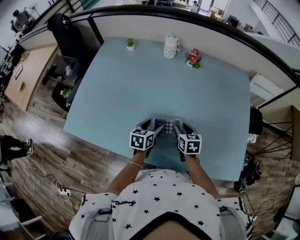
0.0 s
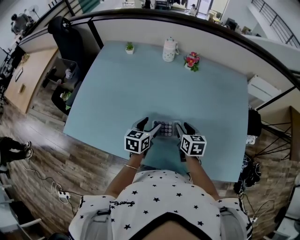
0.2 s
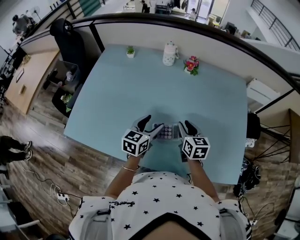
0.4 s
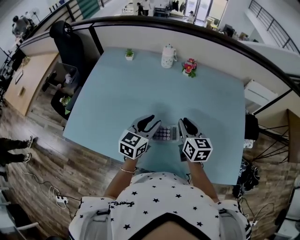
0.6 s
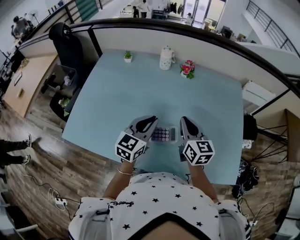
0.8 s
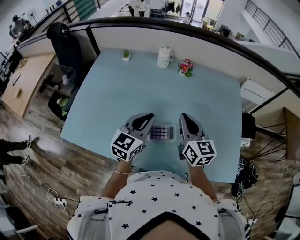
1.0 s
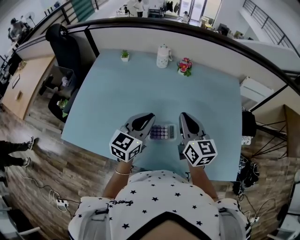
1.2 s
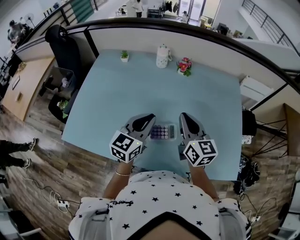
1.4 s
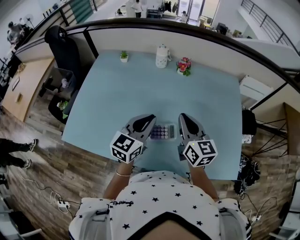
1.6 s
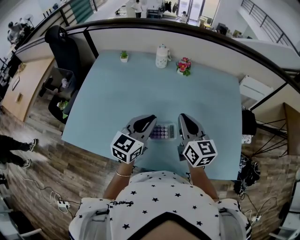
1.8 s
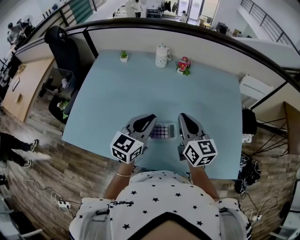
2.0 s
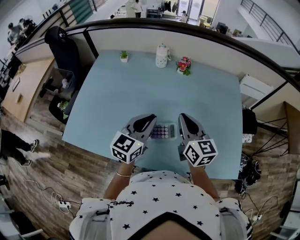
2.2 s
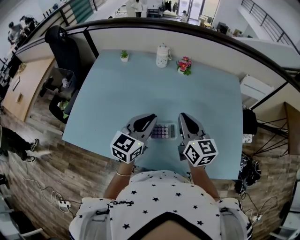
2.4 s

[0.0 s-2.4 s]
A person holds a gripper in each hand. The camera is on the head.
0.0 to 1.2 s: Both grippers travel together upward, approximately 20 cm. The right gripper tips its fingers upward by approximately 40 degrees, and closes its fingers; the left gripper turns by approximately 40 degrees, and closes up.
1.2 to 2.4 s: The two grippers keep their place.

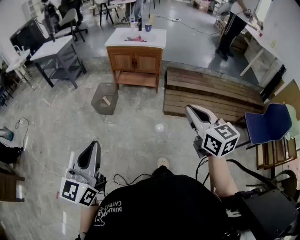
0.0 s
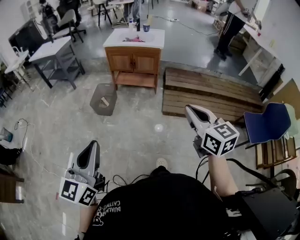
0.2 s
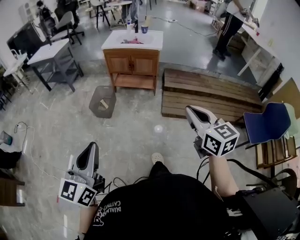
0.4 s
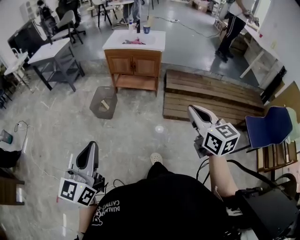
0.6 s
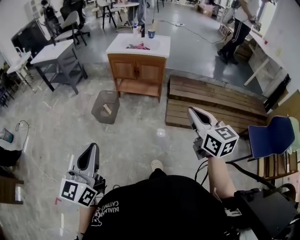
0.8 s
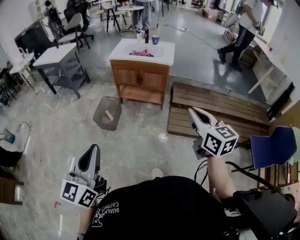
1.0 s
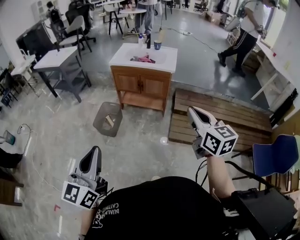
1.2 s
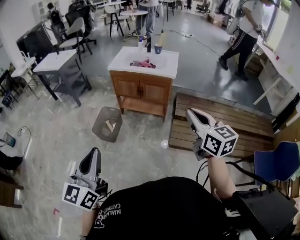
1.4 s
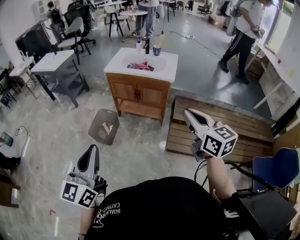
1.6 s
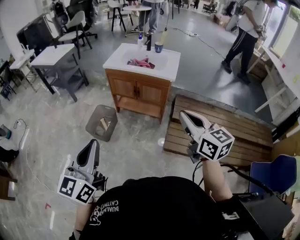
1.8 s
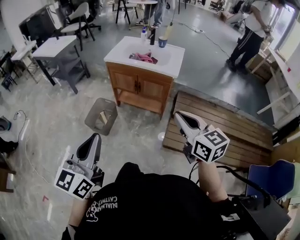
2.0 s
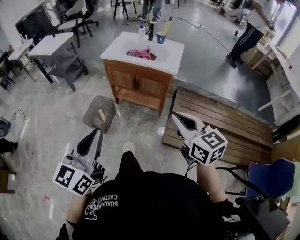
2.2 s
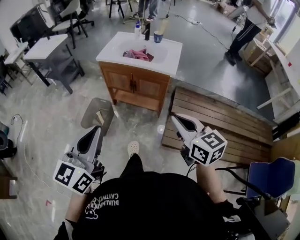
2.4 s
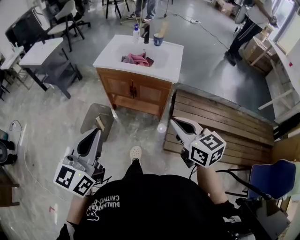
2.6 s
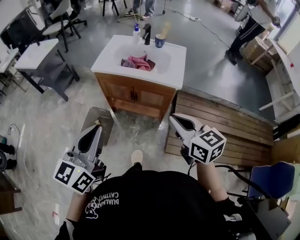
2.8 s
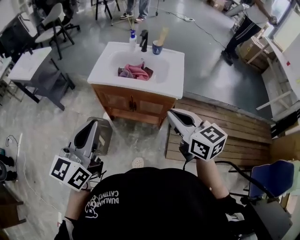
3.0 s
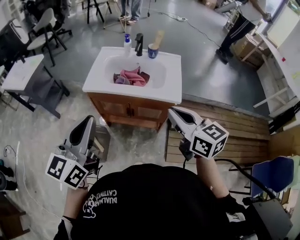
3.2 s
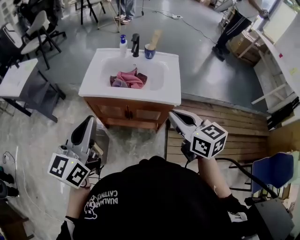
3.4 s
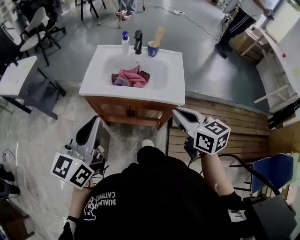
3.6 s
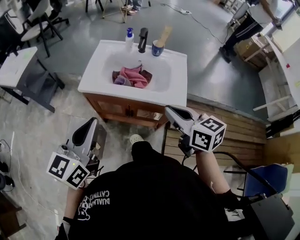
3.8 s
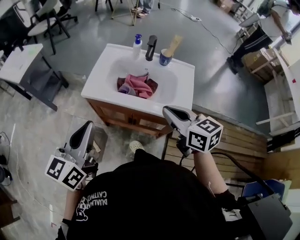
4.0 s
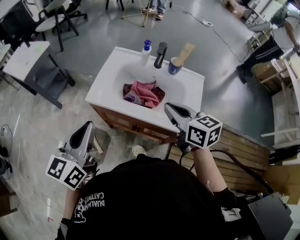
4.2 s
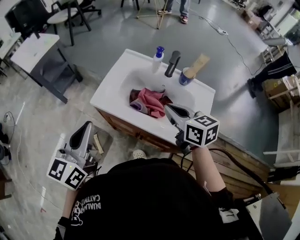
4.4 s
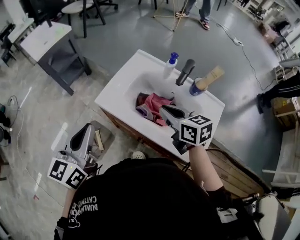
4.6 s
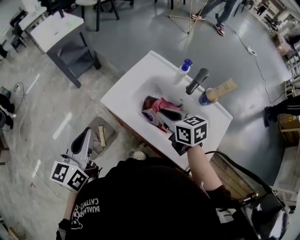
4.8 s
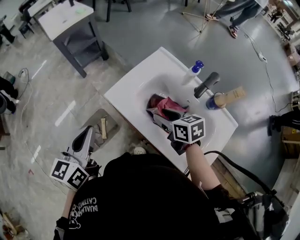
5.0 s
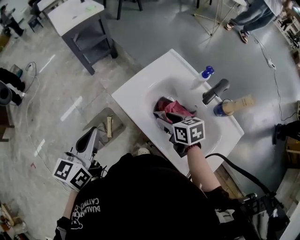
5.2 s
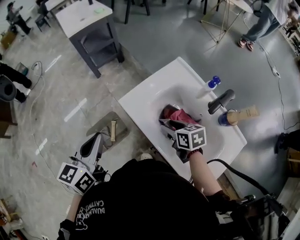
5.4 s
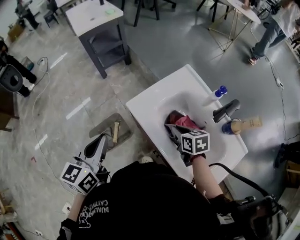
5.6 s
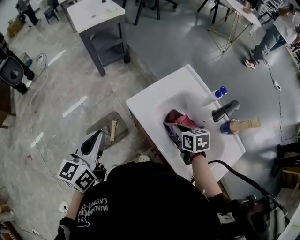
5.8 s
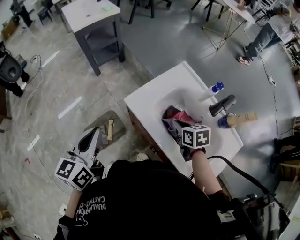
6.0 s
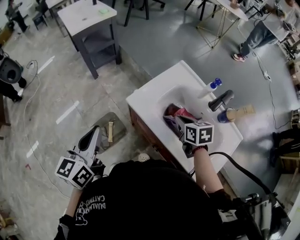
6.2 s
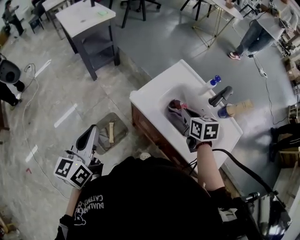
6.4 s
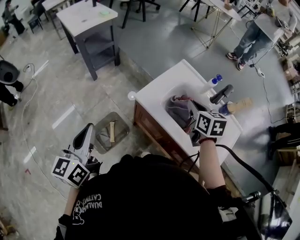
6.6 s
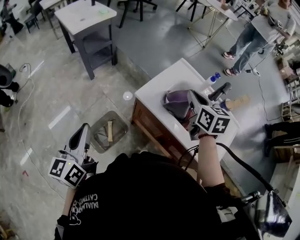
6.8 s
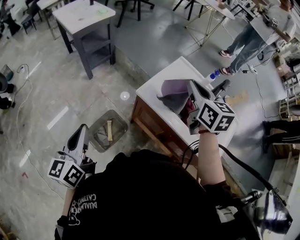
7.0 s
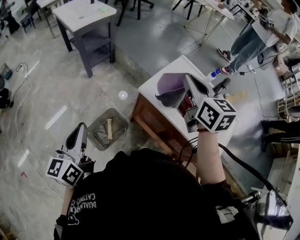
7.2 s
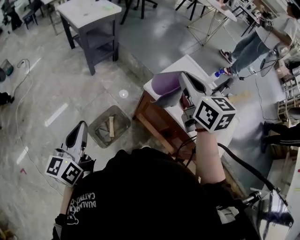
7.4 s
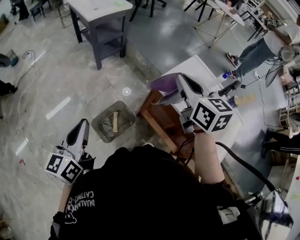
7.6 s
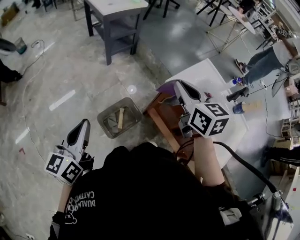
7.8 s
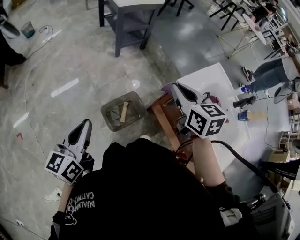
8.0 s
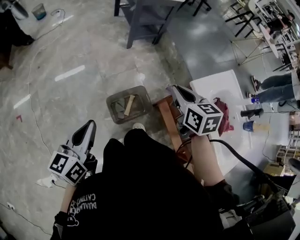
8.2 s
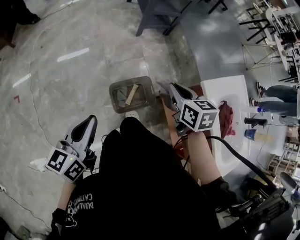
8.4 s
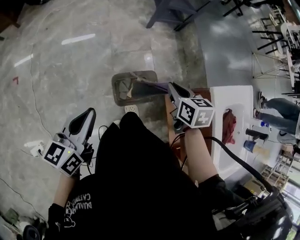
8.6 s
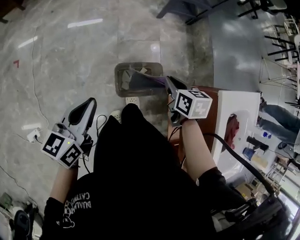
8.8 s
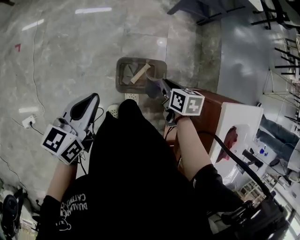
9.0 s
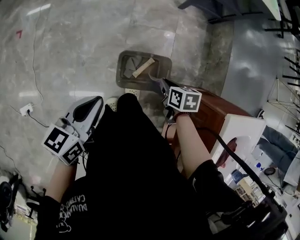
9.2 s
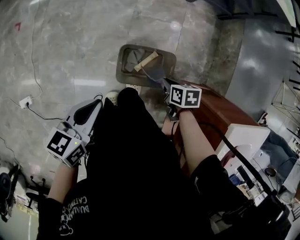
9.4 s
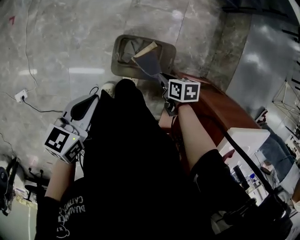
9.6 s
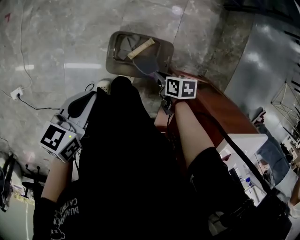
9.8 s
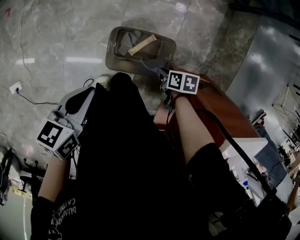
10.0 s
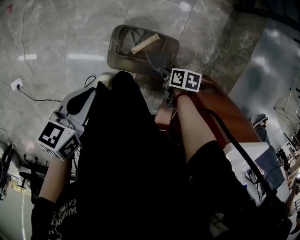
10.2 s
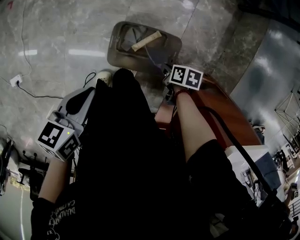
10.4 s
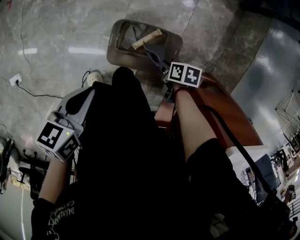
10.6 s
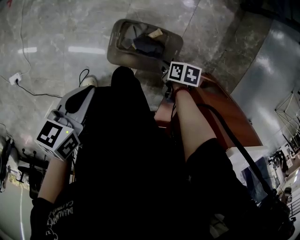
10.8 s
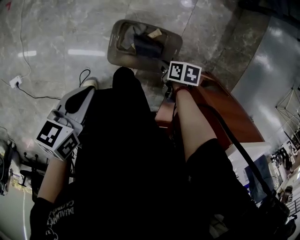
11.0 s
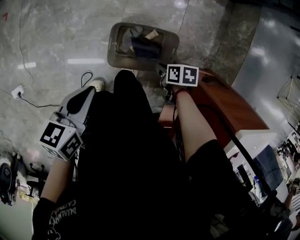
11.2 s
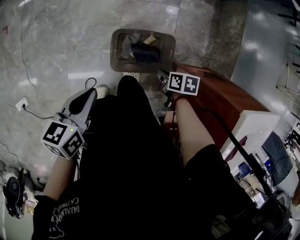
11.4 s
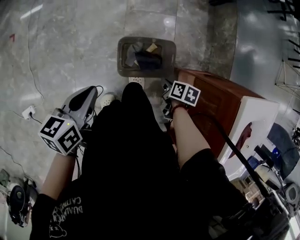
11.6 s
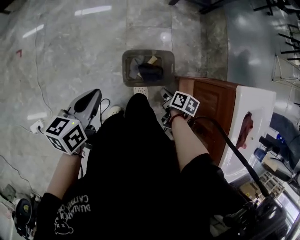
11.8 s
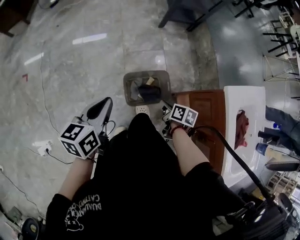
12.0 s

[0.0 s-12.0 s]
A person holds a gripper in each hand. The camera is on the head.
0.0 to 1.6 s: Both grippers travel together forward, about 35 cm.
1.6 to 3.0 s: Both grippers travel together forward, about 35 cm.
3.0 to 4.4 s: The grippers both shift forward by approximately 30 cm.
4.4 to 6.0 s: The right gripper is displaced downward by some 15 cm, changes its angle by approximately 30 degrees, and opens and closes again; the left gripper ends up approximately 10 cm from where it was, and rotates some 30 degrees.
6.0 to 7.6 s: The left gripper moves to the left, about 25 cm. The right gripper heads upward and to the left, covering approximately 35 cm, and tips its fingers upward by approximately 30 degrees.
7.6 to 9.0 s: The left gripper travels downward by approximately 20 cm, and swivels roughly 30 degrees. Meanwhile the right gripper is displaced downward by approximately 40 cm, and points its fingers roughly 40 degrees further downward.
9.0 to 10.4 s: Both grippers travel together downward, approximately 25 cm. The right gripper turns by approximately 30 degrees. Meanwhile the left gripper turns by approximately 30 degrees.
10.4 to 12.0 s: Both grippers move upward, approximately 20 cm. The left gripper swivels about 20 degrees. Meanwhile the right gripper changes its angle by about 40 degrees.

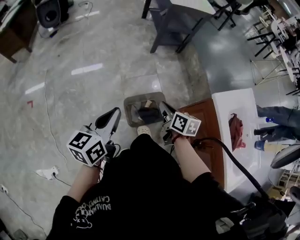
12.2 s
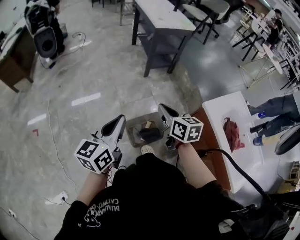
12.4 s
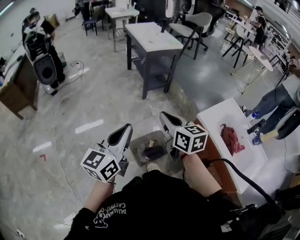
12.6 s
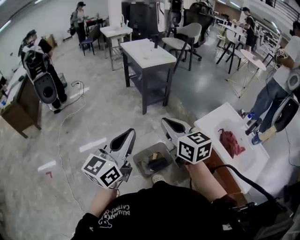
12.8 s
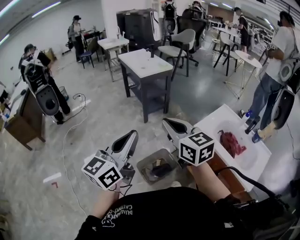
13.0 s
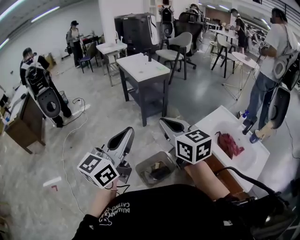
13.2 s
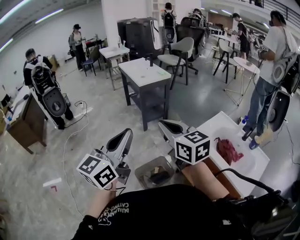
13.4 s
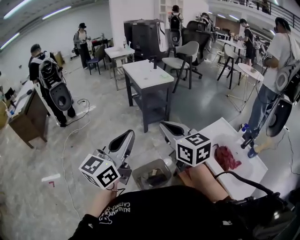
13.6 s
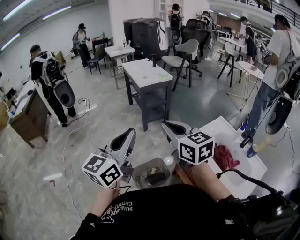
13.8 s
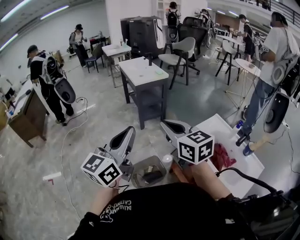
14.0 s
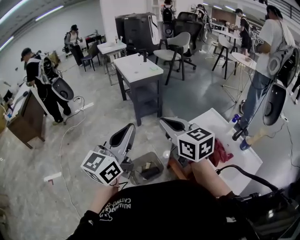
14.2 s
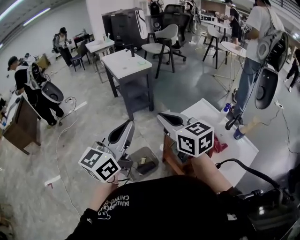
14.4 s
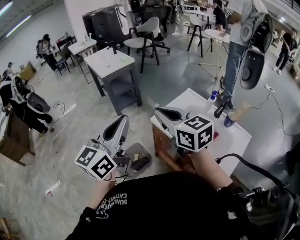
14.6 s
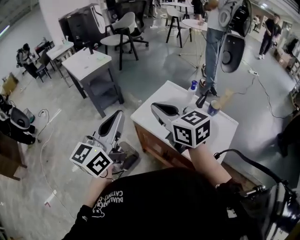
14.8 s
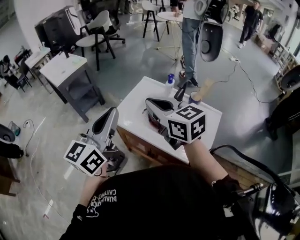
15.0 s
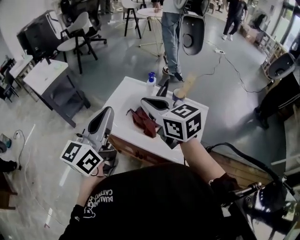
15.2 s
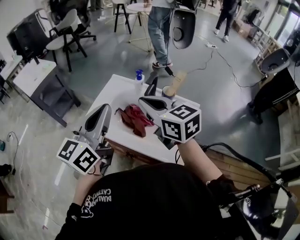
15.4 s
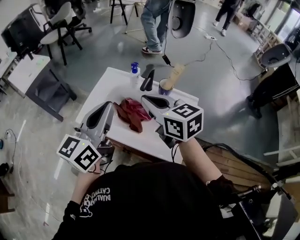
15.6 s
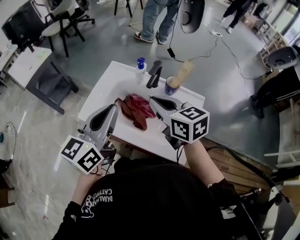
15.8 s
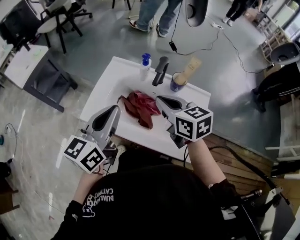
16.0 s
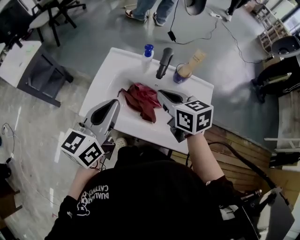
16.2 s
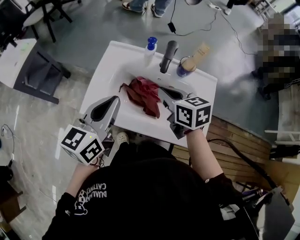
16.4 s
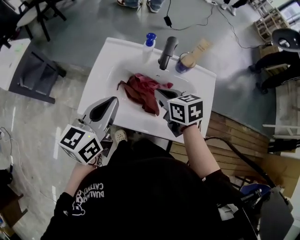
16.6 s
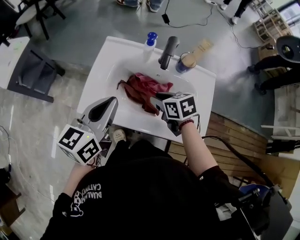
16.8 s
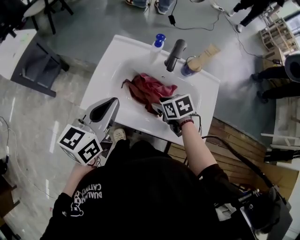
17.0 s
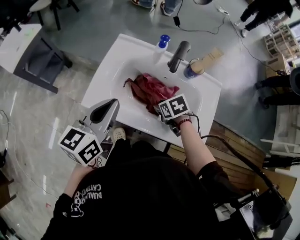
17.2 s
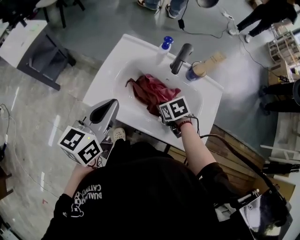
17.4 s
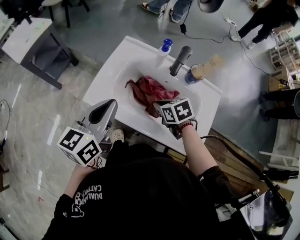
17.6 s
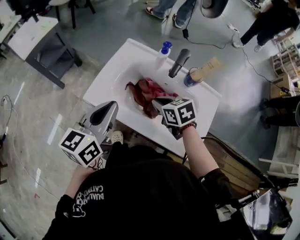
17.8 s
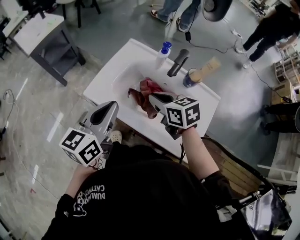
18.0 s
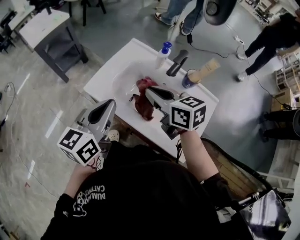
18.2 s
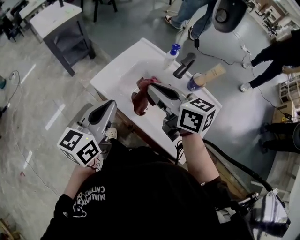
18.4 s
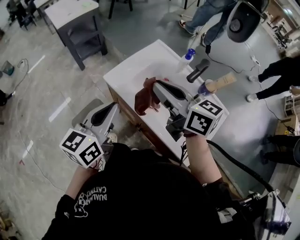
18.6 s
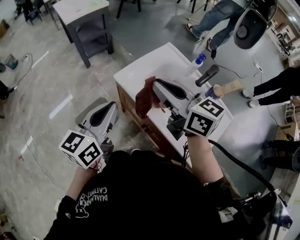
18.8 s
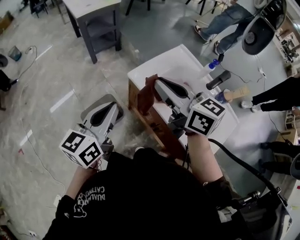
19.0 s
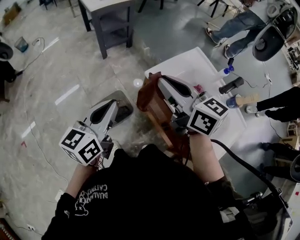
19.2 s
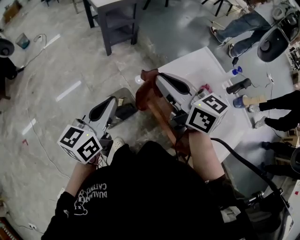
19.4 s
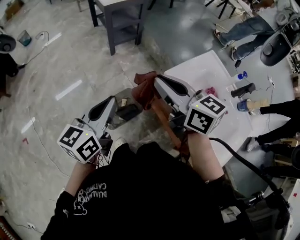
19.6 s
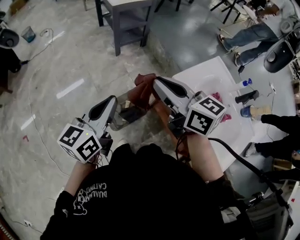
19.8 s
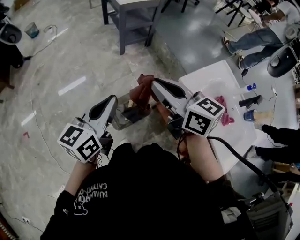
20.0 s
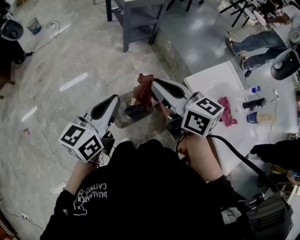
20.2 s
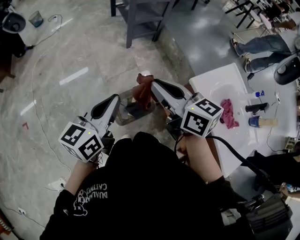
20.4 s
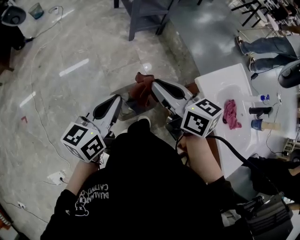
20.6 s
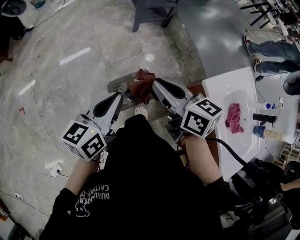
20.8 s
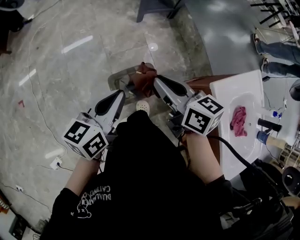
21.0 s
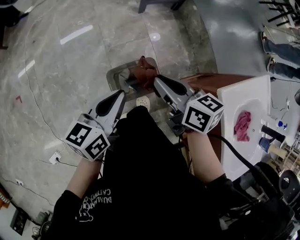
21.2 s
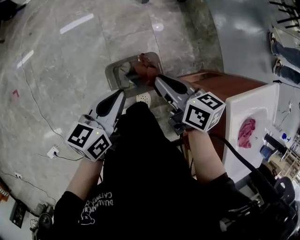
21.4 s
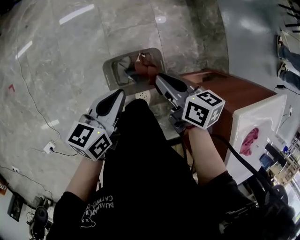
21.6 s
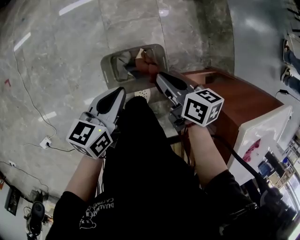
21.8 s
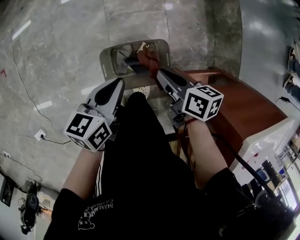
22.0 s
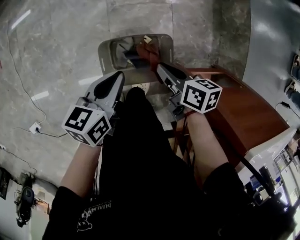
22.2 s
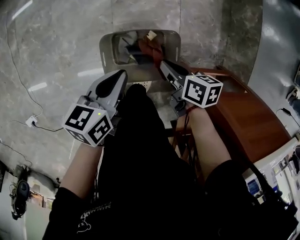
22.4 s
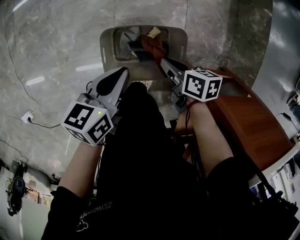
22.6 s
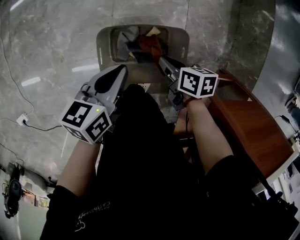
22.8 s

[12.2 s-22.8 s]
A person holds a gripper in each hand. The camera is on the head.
12.2 to 13.8 s: The right gripper moves upward, roughly 40 cm, and turns by about 40 degrees; the left gripper heads upward and to the right, covering approximately 35 cm, and rotates about 40 degrees.
13.8 to 15.2 s: The left gripper changes place by some 40 cm, and swivels about 30 degrees. Meanwhile the right gripper ends up some 40 cm from where it was, and swivels roughly 30 degrees.
15.2 to 16.8 s: The left gripper goes roughly 20 cm downward and forward, and rotates some 30 degrees; the right gripper goes about 30 cm downward, angles its fingers downward, by about 30 degrees, and opens up.
16.8 to 18.2 s: The left gripper heads backward, covering approximately 10 cm, and swivels about 20 degrees. The right gripper travels upward by roughly 15 cm, and turns by approximately 30 degrees.
18.2 to 19.8 s: Both grippers are carried to the left, about 40 cm. The left gripper rotates about 20 degrees, while the right gripper changes its angle by approximately 30 degrees.
19.8 to 21.2 s: Both grippers move downward and forward, roughly 25 cm. The left gripper swivels some 20 degrees. Meanwhile the right gripper turns by roughly 30 degrees.
21.2 to 22.8 s: Both grippers move downward, about 40 cm. The left gripper swivels approximately 20 degrees. Meanwhile the right gripper swivels roughly 40 degrees.
